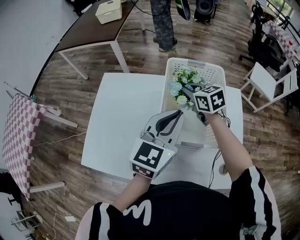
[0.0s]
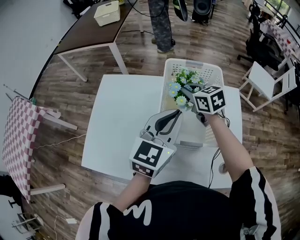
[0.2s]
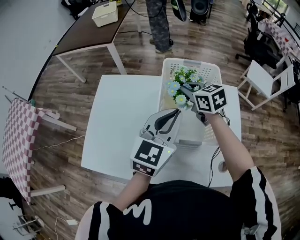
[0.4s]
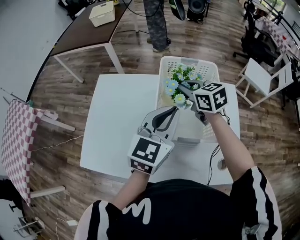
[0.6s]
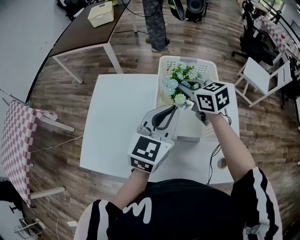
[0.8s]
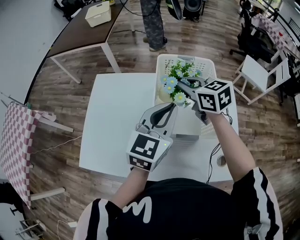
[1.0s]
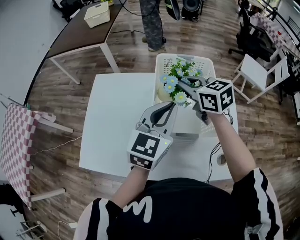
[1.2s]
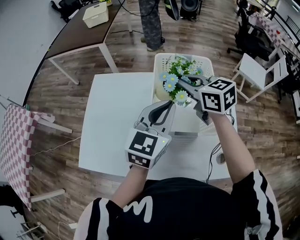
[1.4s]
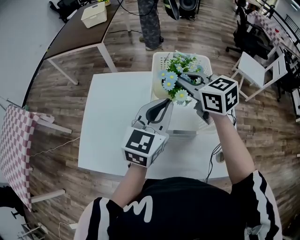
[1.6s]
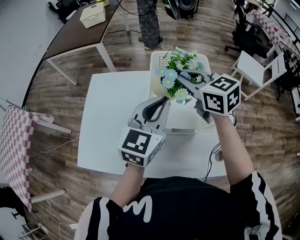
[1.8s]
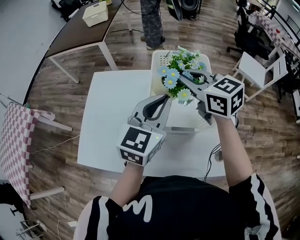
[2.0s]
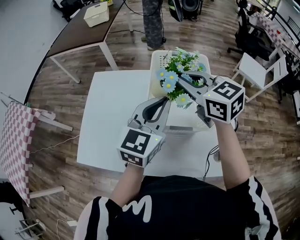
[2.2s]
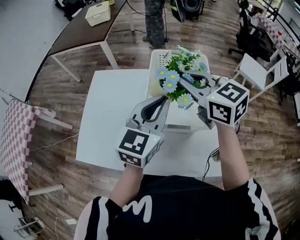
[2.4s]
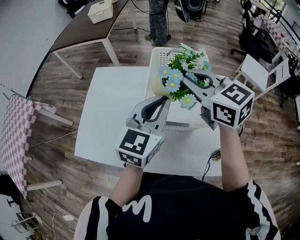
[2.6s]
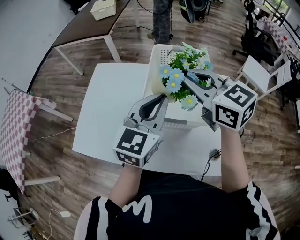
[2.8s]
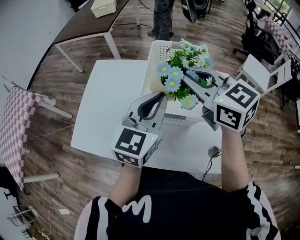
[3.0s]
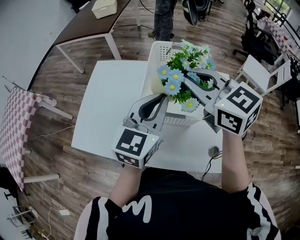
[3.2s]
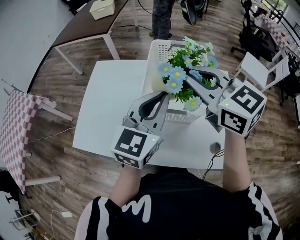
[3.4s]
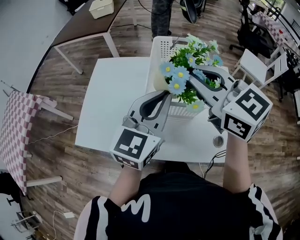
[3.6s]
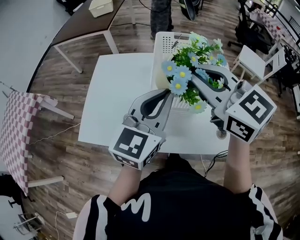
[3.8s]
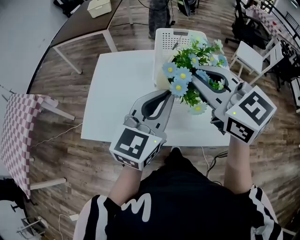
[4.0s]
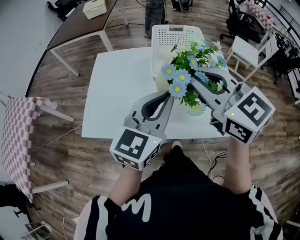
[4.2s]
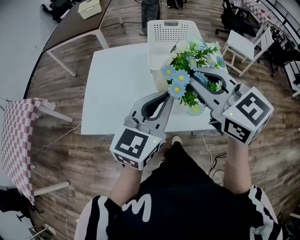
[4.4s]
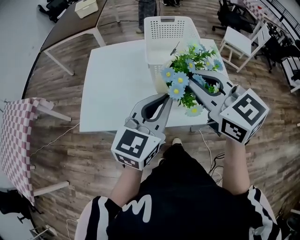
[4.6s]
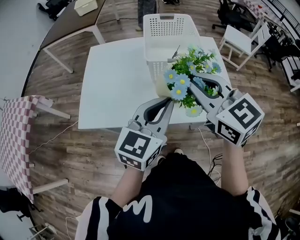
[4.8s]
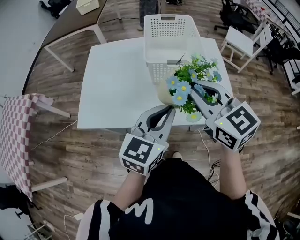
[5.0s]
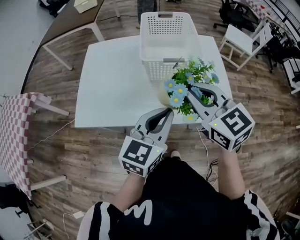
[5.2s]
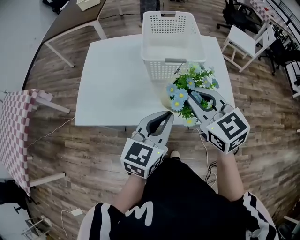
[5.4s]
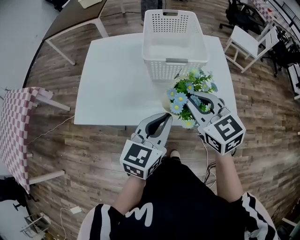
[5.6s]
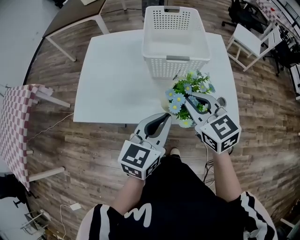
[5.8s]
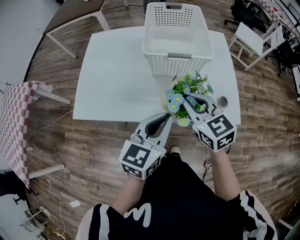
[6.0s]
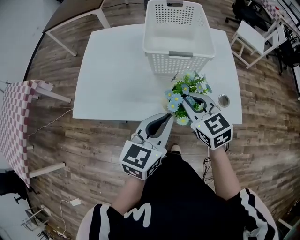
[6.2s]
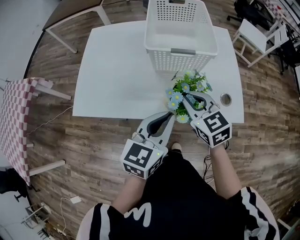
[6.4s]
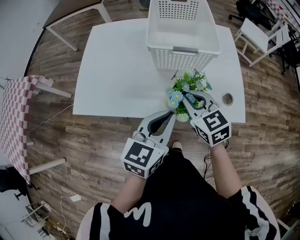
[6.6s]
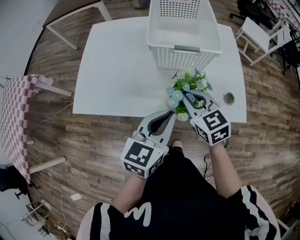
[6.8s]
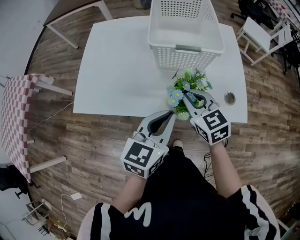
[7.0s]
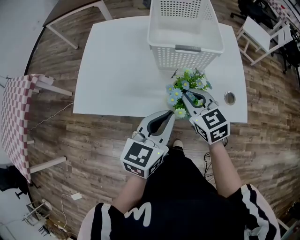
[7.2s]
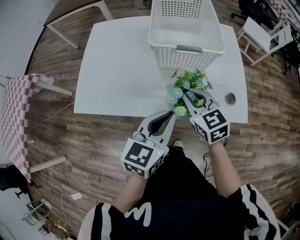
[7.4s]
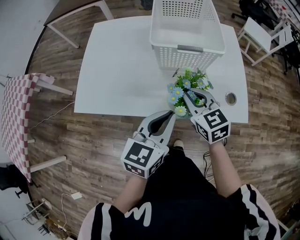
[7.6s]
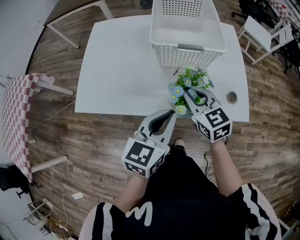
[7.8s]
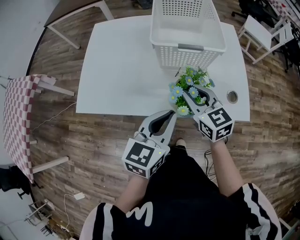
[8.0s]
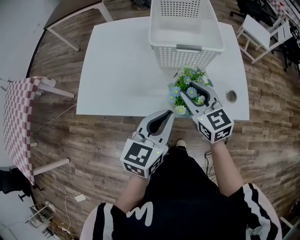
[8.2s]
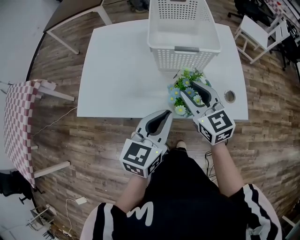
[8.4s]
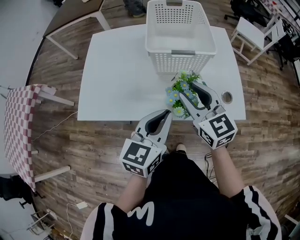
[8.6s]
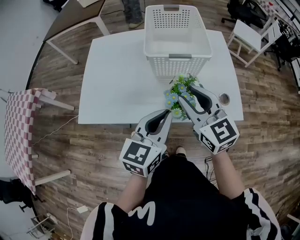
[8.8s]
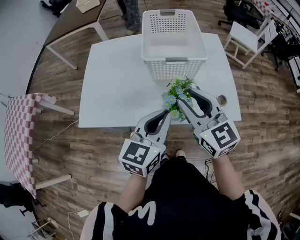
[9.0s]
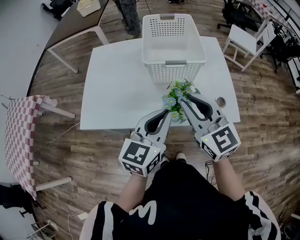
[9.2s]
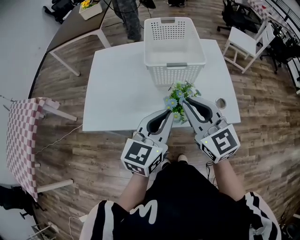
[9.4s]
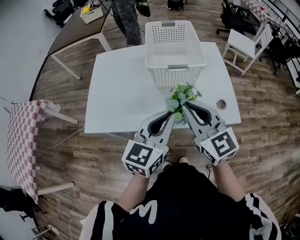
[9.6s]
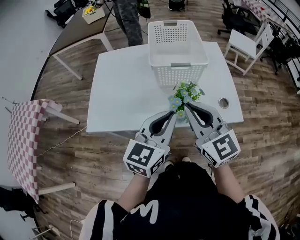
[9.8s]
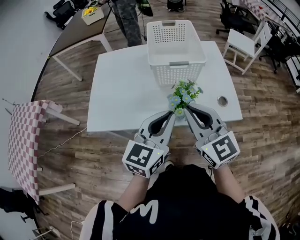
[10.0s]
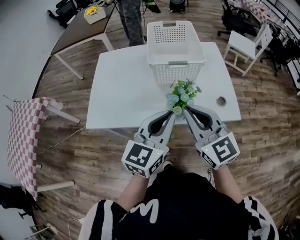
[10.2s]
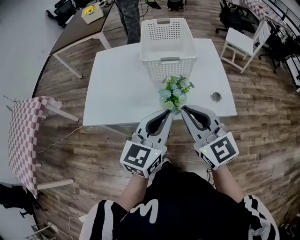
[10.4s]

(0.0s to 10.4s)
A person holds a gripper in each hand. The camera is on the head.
0.0s - 1.4s: The right gripper moves upward and backward, some 10 cm.
1.4s - 3.0s: The left gripper goes approximately 5 cm backward; the right gripper moves backward and upward, some 15 cm.
3.0s - 4.4s: The two grippers go about 15 cm backward.
4.4s - 6.0s: The right gripper travels downward by some 20 cm, while the left gripper heads downward and backward, covering some 15 cm.
6.0s - 7.4s: The right gripper shifts approximately 5 cm downward.
7.4s - 9.0s: The right gripper heads upward, covering some 15 cm, changes its angle by about 20 degrees, and opens.
9.0s - 10.4s: The left gripper is displaced backward by some 5 cm, while the right gripper heads backward, covering some 10 cm, and closes its fingers.

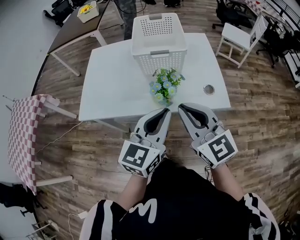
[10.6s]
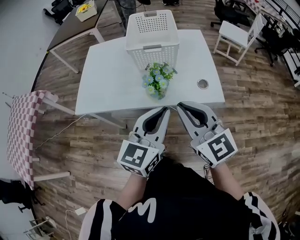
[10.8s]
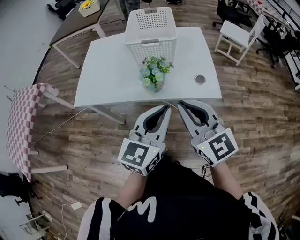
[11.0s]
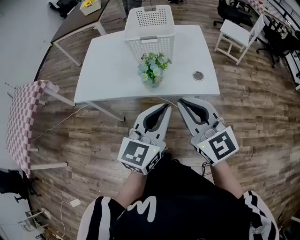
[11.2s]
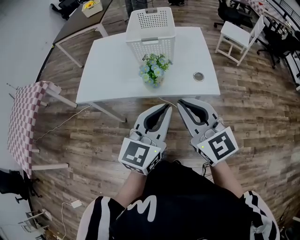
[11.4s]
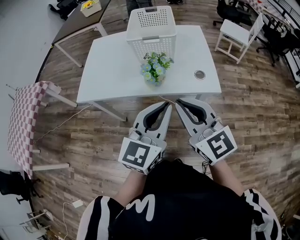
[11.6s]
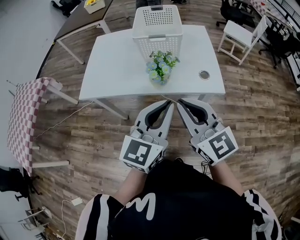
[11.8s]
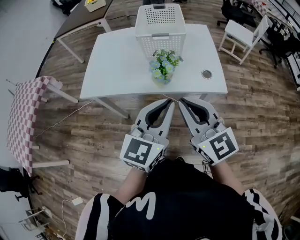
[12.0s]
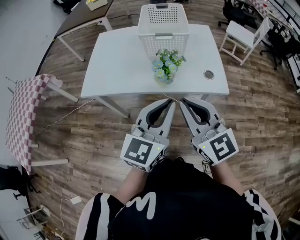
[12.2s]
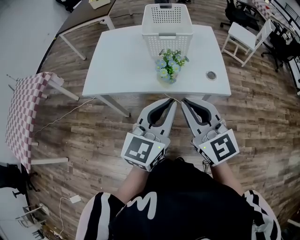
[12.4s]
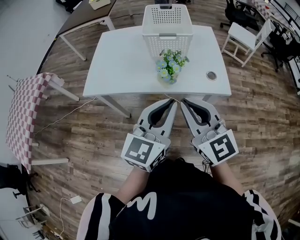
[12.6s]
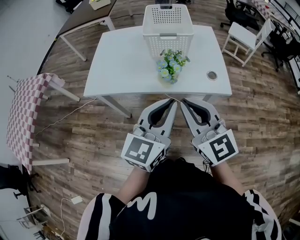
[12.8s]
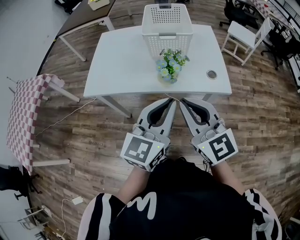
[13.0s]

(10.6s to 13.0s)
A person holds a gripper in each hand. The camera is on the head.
10.6s - 11.8s: Both grippers travel together backward, about 10 cm.
11.8s - 13.0s: The grippers stay close to where they were, moving slightly.

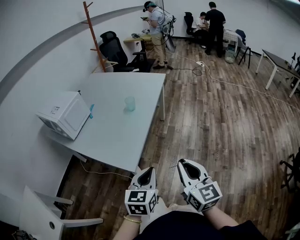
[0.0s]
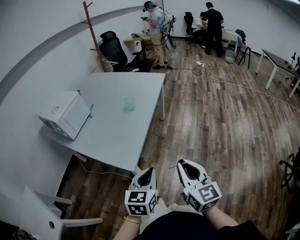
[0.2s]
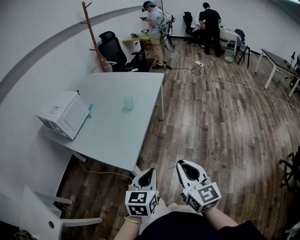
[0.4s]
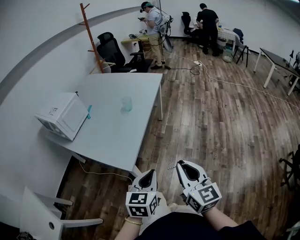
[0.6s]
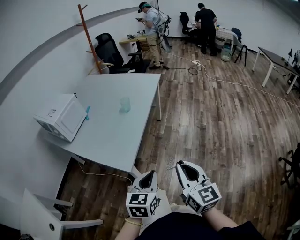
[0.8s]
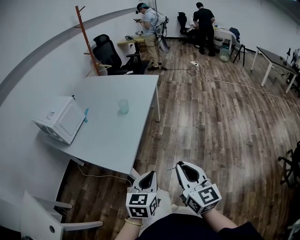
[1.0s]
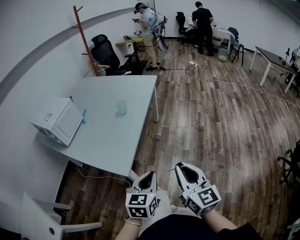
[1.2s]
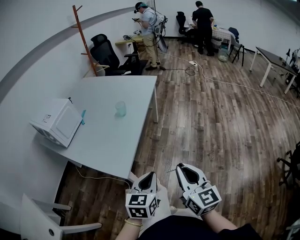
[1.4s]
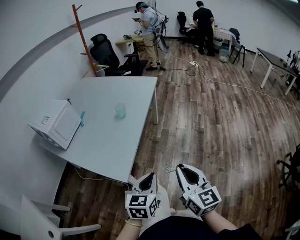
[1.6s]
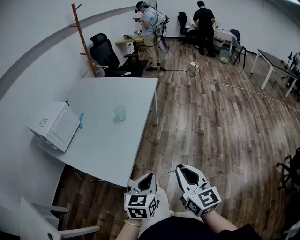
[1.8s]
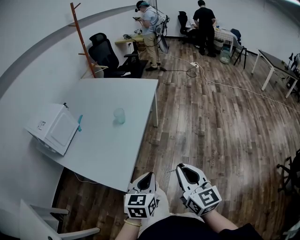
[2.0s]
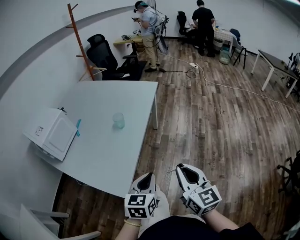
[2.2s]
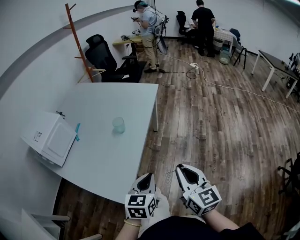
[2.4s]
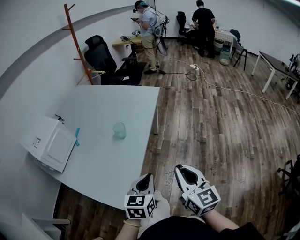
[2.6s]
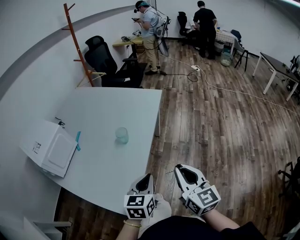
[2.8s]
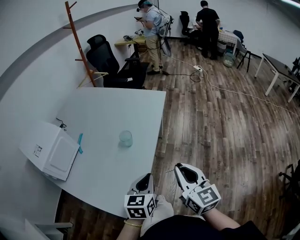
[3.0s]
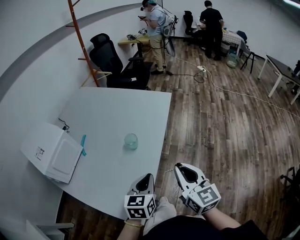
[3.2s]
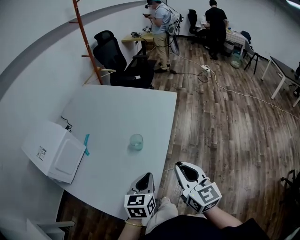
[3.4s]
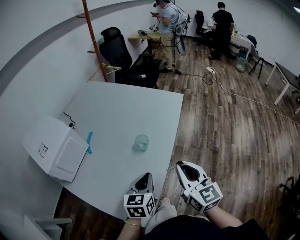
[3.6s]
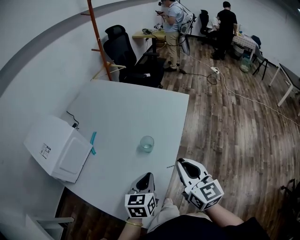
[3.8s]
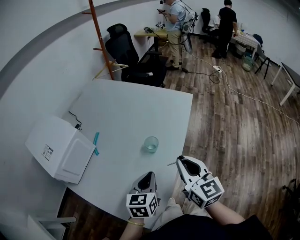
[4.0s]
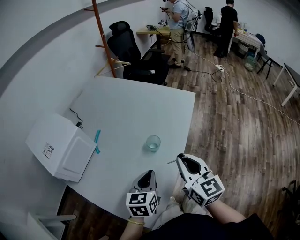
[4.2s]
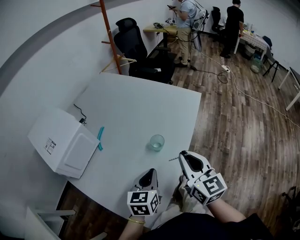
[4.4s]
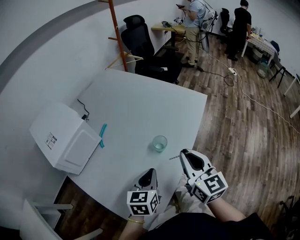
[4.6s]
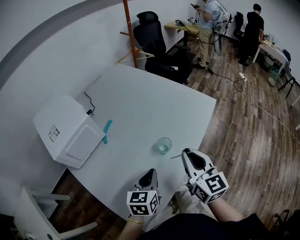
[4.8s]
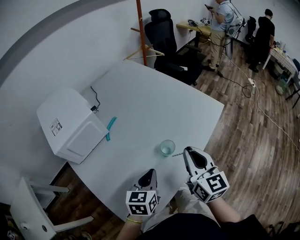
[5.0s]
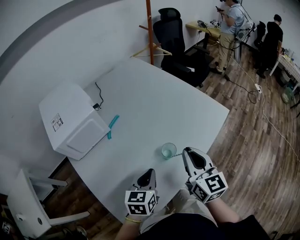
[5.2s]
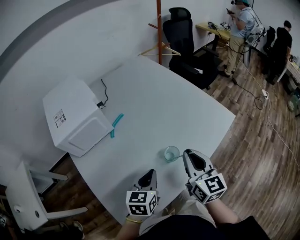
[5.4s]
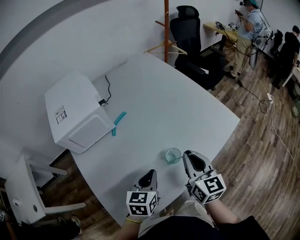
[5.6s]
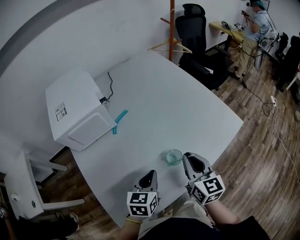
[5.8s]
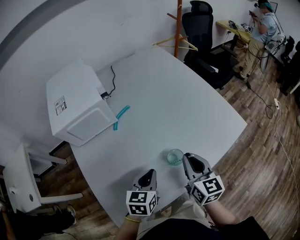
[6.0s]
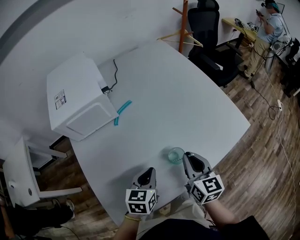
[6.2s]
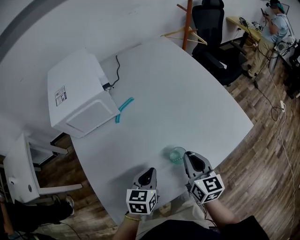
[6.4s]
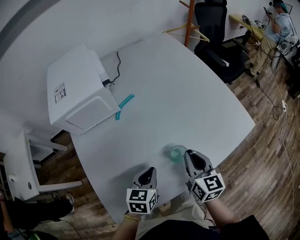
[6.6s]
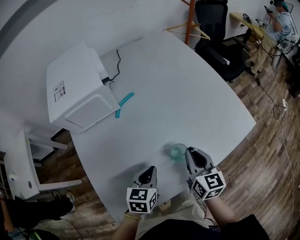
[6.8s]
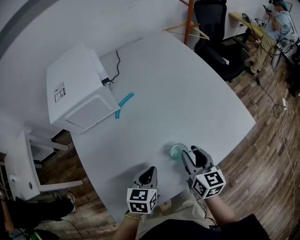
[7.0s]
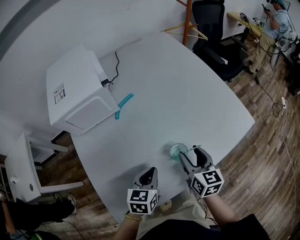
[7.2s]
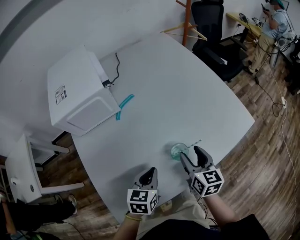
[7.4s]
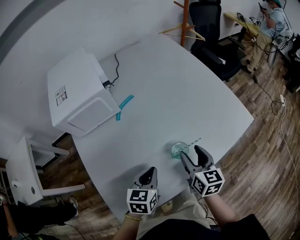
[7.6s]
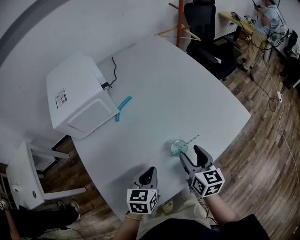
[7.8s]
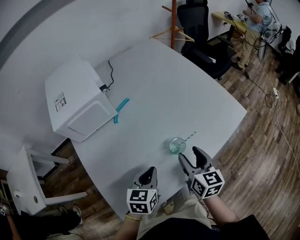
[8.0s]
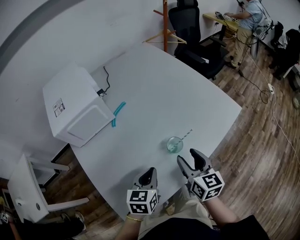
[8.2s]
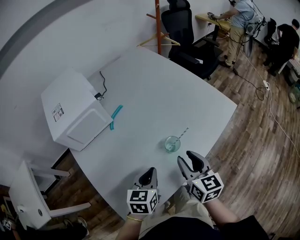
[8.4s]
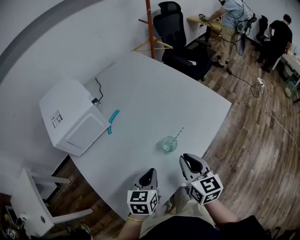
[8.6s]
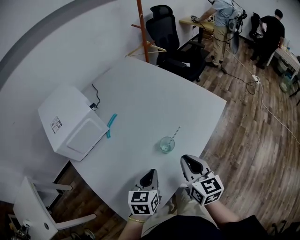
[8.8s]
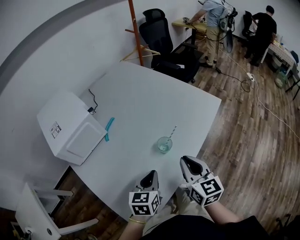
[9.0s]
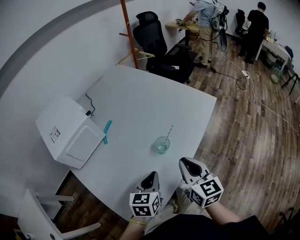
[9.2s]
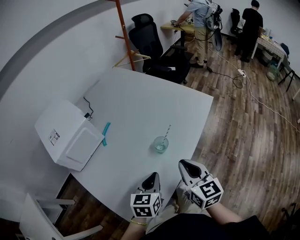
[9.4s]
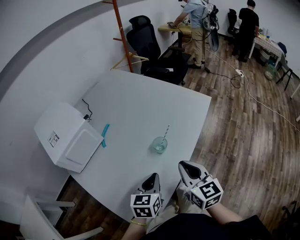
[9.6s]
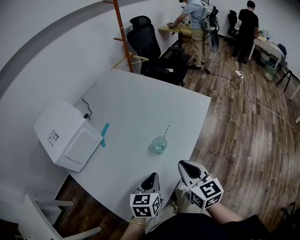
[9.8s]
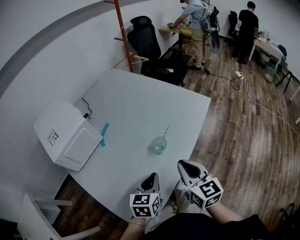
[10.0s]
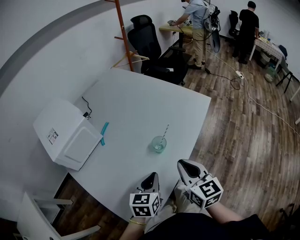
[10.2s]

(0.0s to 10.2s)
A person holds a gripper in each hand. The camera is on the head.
0.0s - 1.4s: The grippers stay close to where they were, moving slightly.
1.4s - 3.0s: Both grippers move forward, about 25 cm.
3.0s - 4.4s: The right gripper goes about 20 cm forward and to the left. The left gripper heads to the left and forward, covering about 15 cm.
4.4s - 5.8s: The left gripper shifts approximately 10 cm forward and downward, and changes its angle by roughly 30 degrees. Meanwhile the right gripper travels forward and downward by roughly 15 cm, and changes its angle by about 30 degrees.
5.8s - 7.2s: The right gripper moves downward, about 10 cm, and opens up.
7.2s - 8.8s: The right gripper is displaced backward and upward by about 15 cm, and closes, while the left gripper shifts approximately 5 cm upward.
8.8s - 10.2s: The right gripper travels backward by some 5 cm.

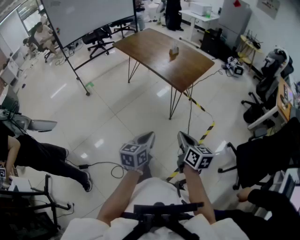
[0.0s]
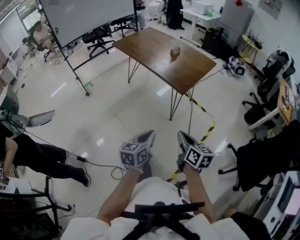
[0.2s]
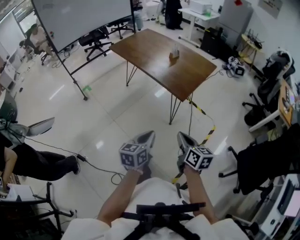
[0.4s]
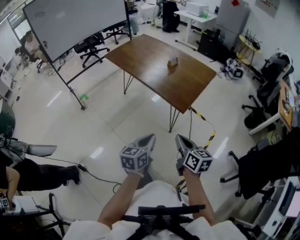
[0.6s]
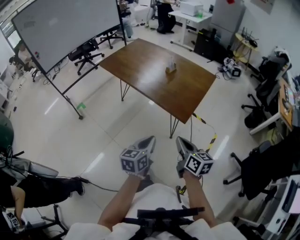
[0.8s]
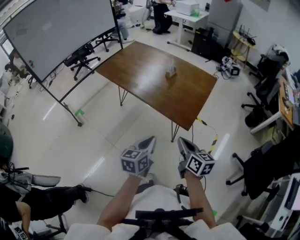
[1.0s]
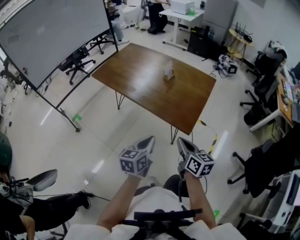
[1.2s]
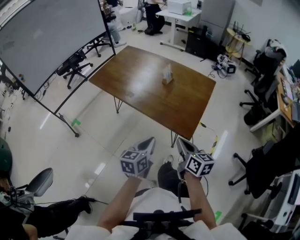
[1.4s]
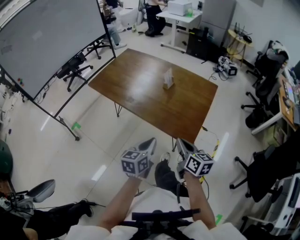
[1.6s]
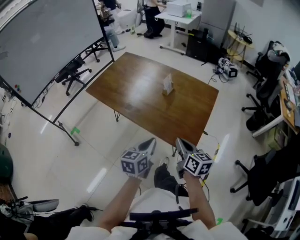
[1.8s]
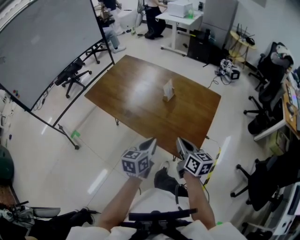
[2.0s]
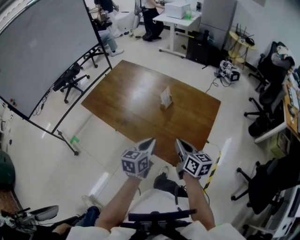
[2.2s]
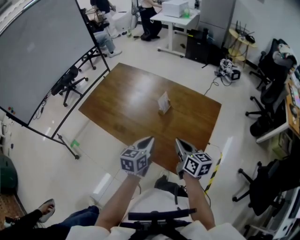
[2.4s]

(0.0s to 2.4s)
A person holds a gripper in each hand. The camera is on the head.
0.0s - 1.2s: Both grippers travel together forward, approximately 35 cm.
1.2s - 2.4s: Both grippers travel together forward, about 30 cm.
